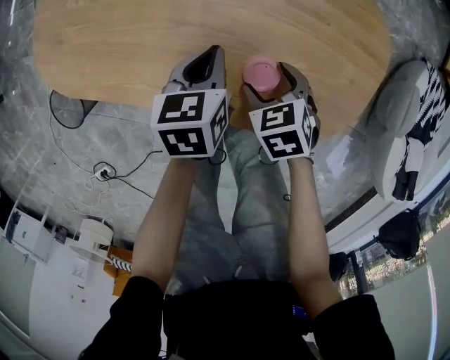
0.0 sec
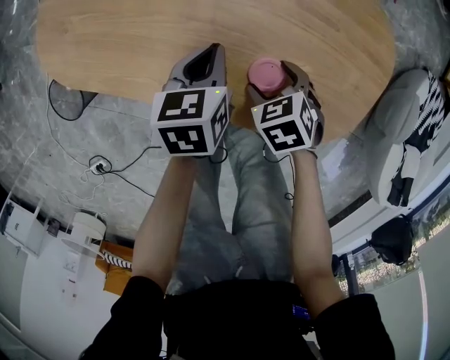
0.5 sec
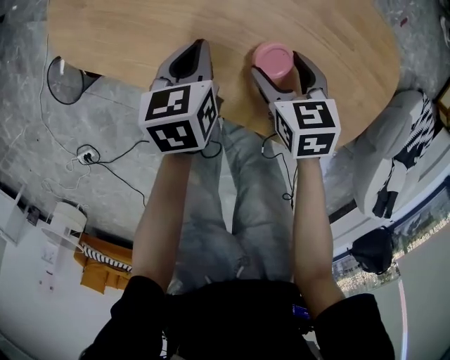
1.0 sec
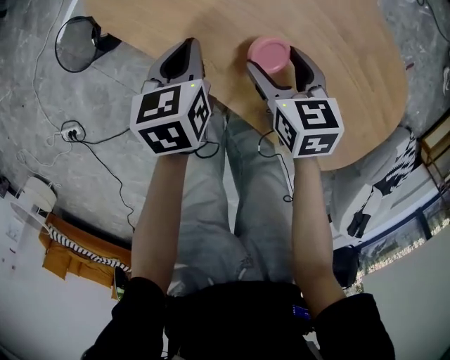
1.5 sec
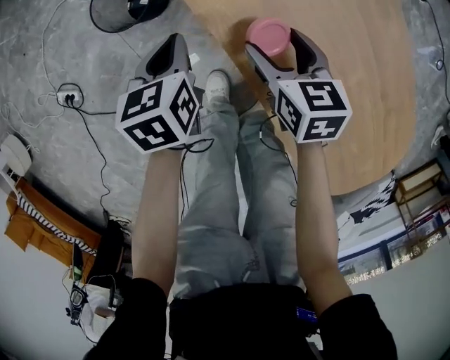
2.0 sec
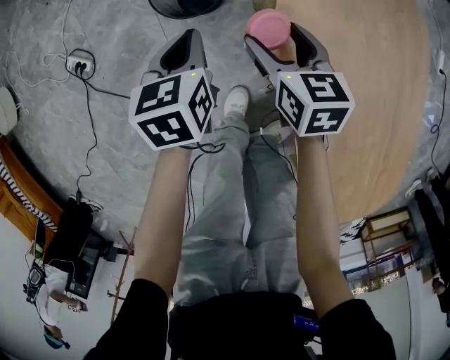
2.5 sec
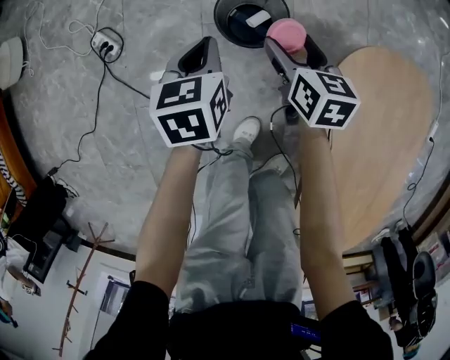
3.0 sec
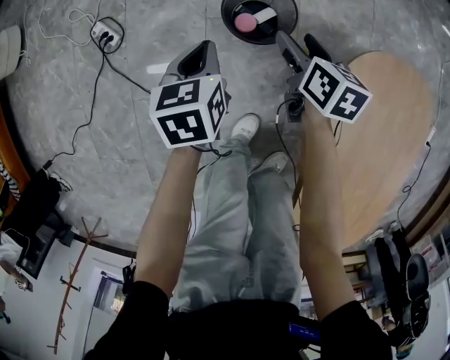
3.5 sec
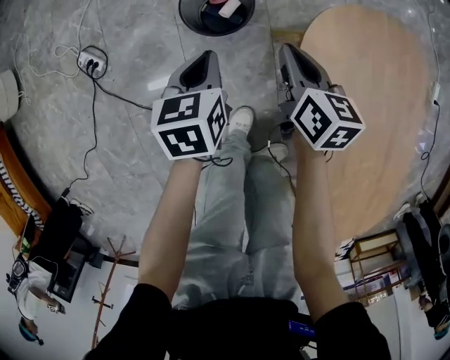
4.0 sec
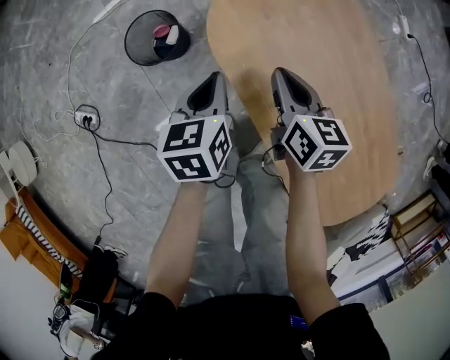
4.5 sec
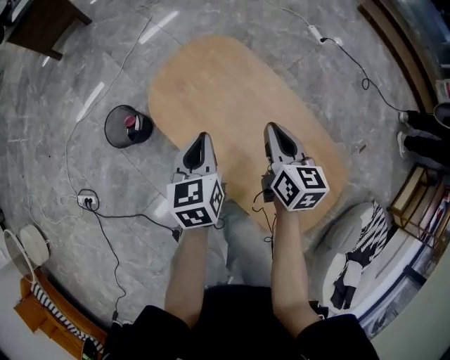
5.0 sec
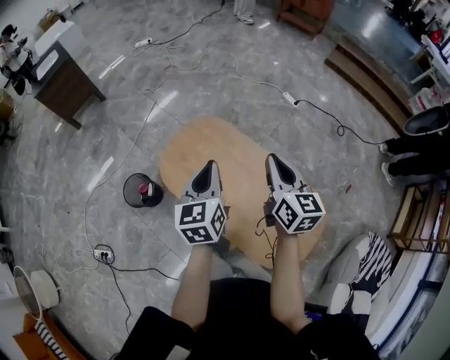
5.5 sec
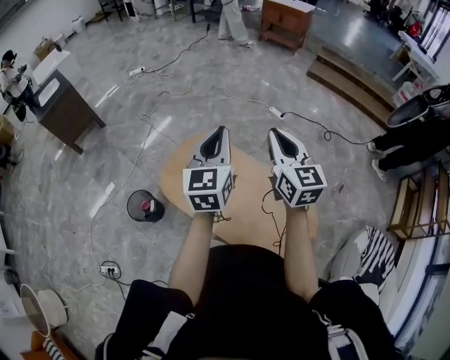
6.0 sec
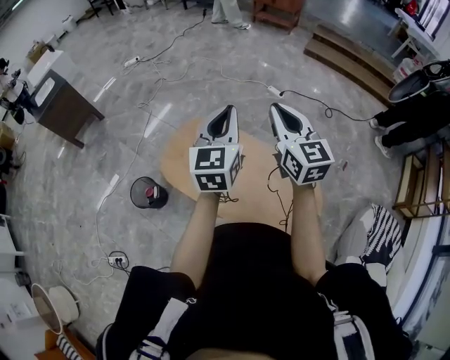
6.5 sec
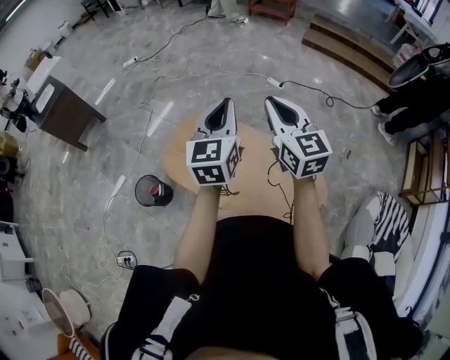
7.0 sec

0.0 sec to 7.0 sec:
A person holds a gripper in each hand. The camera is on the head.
0.0 sec to 2.0 sec: The left gripper changes place by some 40 cm, and turns by some 50 degrees. The right gripper ends up about 40 cm from where it was, and swivels approximately 30 degrees.
2.0 sec to 3.5 sec: The left gripper ends up about 30 cm from where it was, and changes its angle by roughly 30 degrees, while the right gripper ends up approximately 35 cm from where it was.
3.5 sec to 5.0 sec: The two grippers travel together, about 60 cm. The right gripper changes its angle by some 50 degrees, and closes its fingers; the left gripper swivels roughly 40 degrees.
5.0 sec to 7.0 sec: The left gripper shifts about 40 cm upward and to the right, and turns by about 40 degrees; the right gripper is displaced upward by some 35 cm, and changes its angle by some 30 degrees.

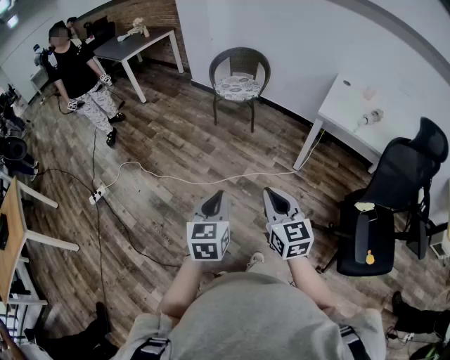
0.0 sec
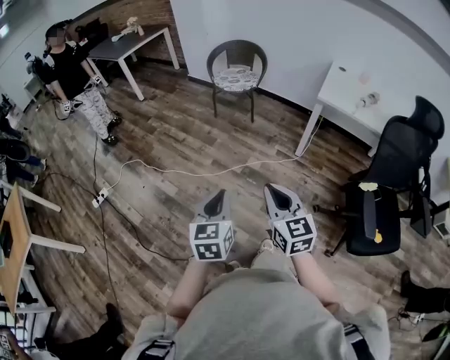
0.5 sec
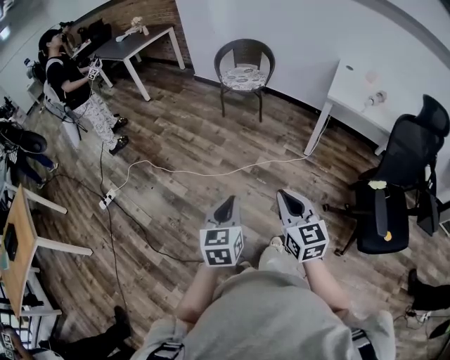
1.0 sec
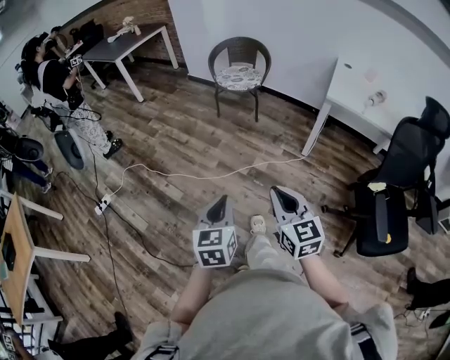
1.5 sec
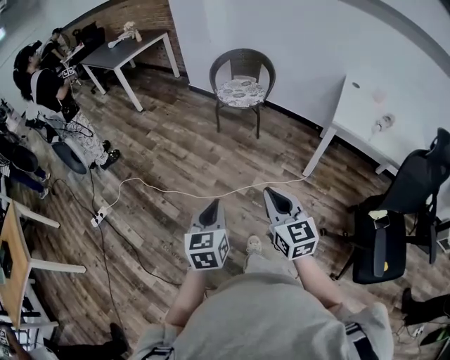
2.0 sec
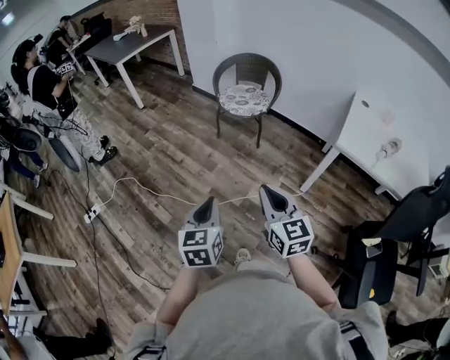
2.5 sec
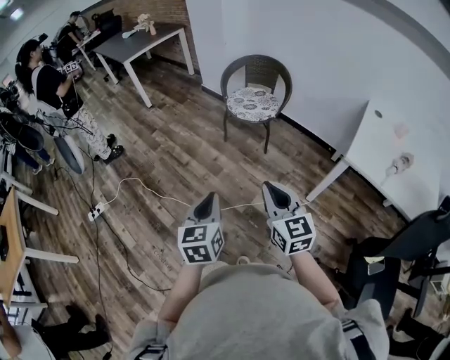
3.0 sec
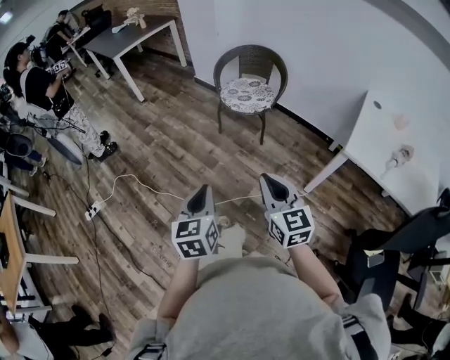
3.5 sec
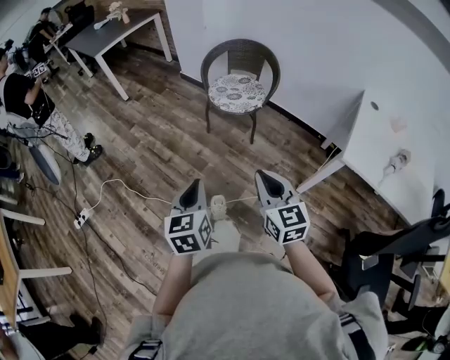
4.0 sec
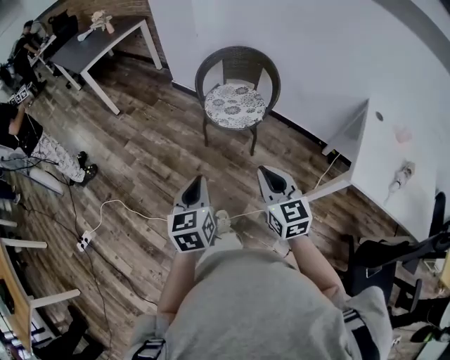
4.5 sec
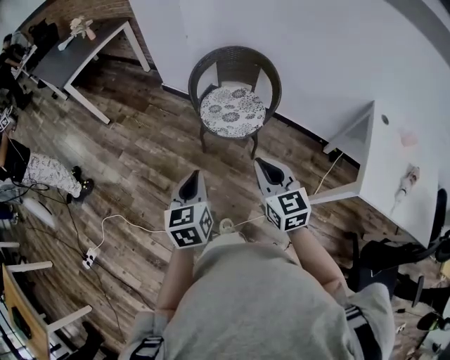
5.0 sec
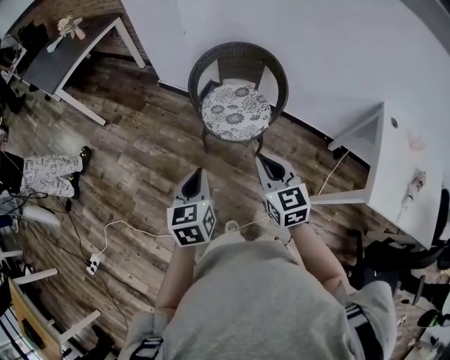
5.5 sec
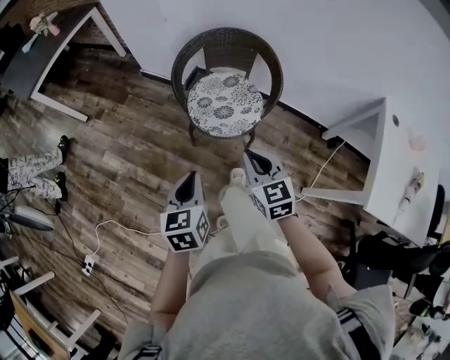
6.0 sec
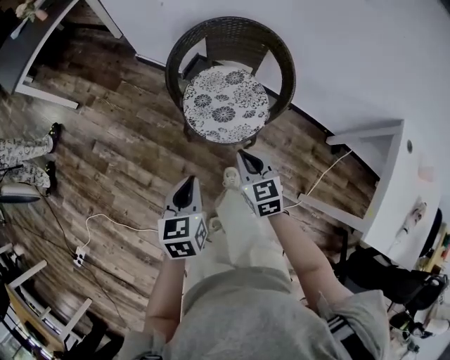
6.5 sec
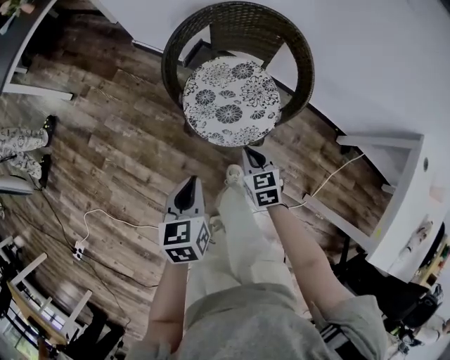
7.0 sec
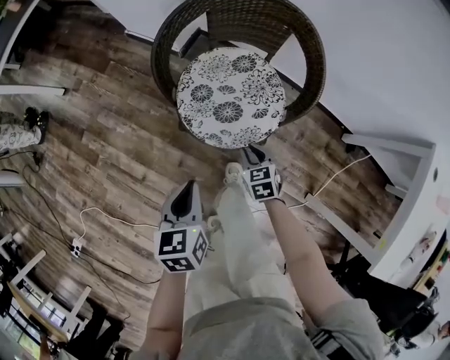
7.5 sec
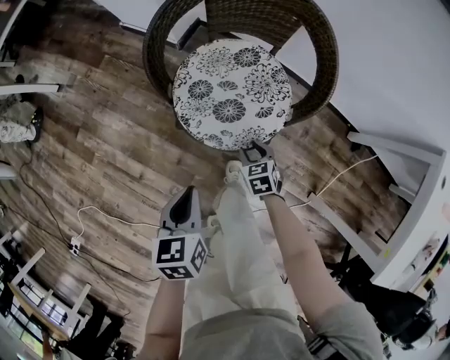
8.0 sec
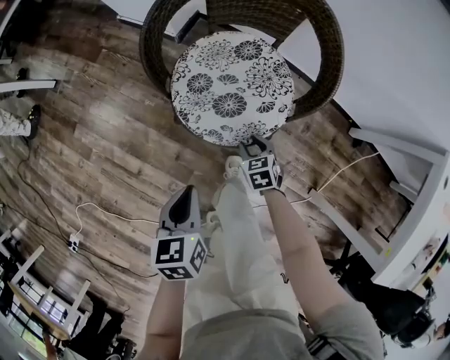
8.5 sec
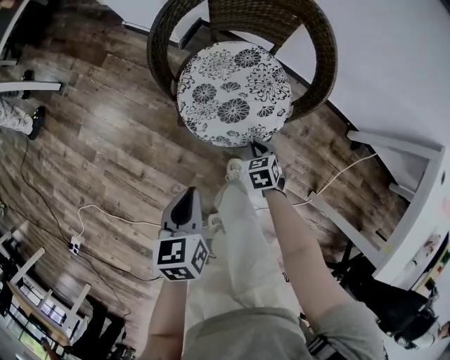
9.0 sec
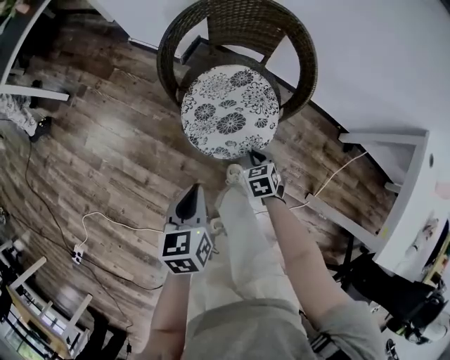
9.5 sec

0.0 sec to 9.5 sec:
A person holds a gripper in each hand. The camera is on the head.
0.0 sec to 2.0 sec: The two grippers go about 15 cm forward and to the left.
2.0 sec to 4.0 sec: The two grippers go some 30 cm forward.
4.0 sec to 5.5 sec: The grippers both shift forward by roughly 40 cm.
5.5 sec to 7.5 sec: The left gripper shifts some 35 cm downward and forward, while the right gripper moves downward and forward, some 50 cm, and points its fingers approximately 30 degrees further downward.
7.5 sec to 9.5 sec: The right gripper travels downward and back again, some 10 cm each way, and opens, then closes again. The left gripper travels downward and back again, about 5 cm each way.

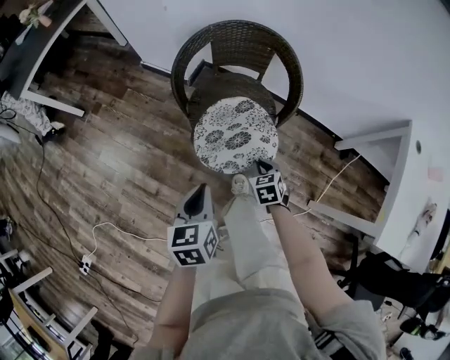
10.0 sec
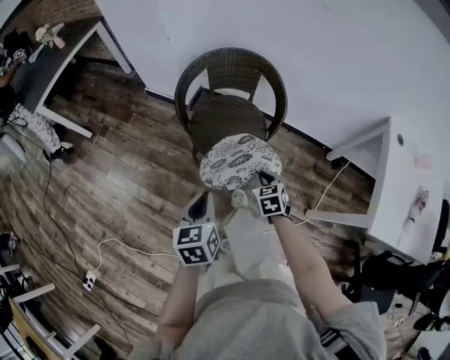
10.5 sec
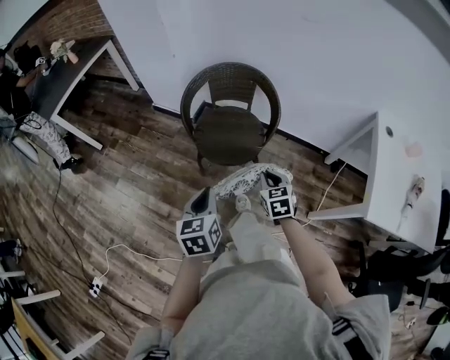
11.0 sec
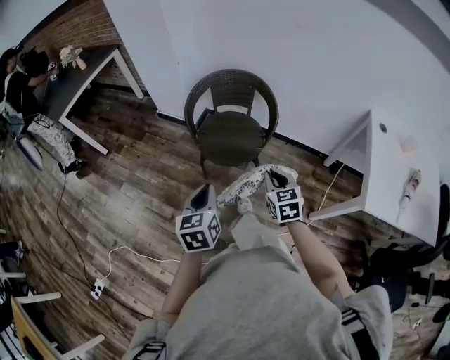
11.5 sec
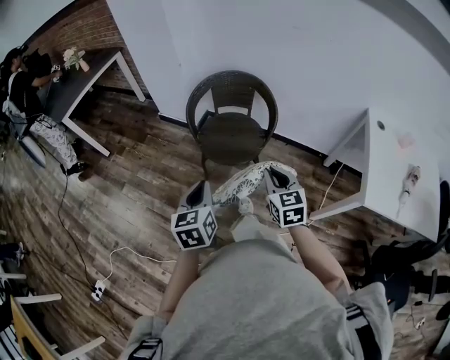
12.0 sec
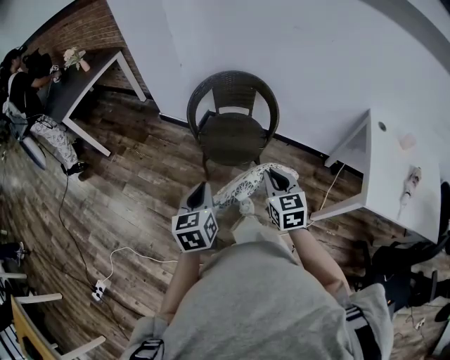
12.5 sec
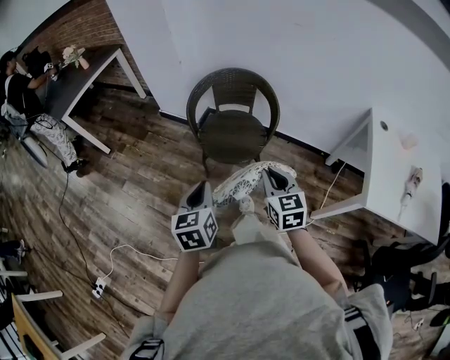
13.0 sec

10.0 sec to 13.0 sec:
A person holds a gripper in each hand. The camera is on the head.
10.0 sec to 11.5 sec: The right gripper goes roughly 30 cm upward and backward, and turns by approximately 20 degrees. Meanwhile the left gripper goes about 20 cm upward and backward.
11.5 sec to 13.0 sec: The right gripper moves upward, about 5 cm.

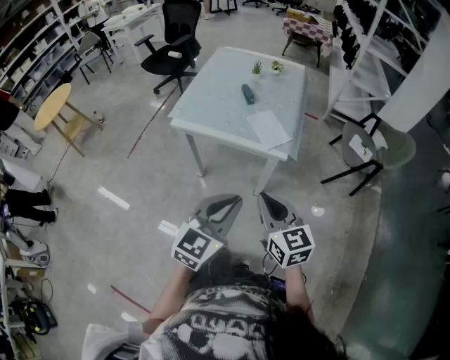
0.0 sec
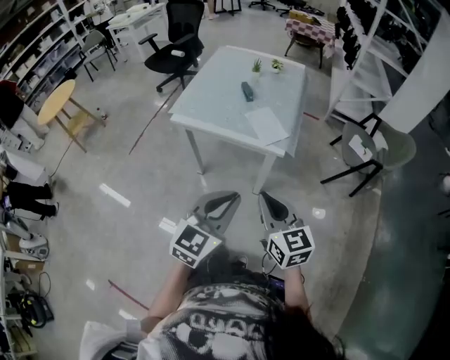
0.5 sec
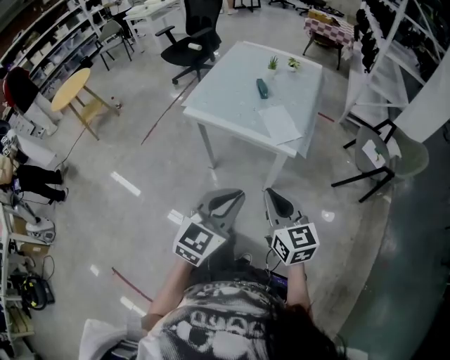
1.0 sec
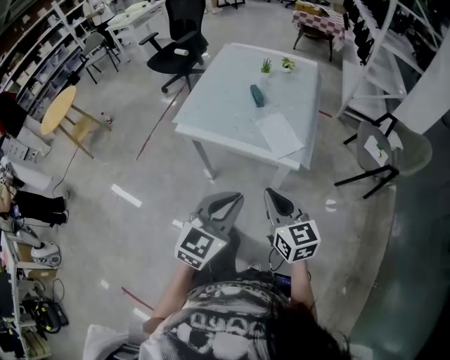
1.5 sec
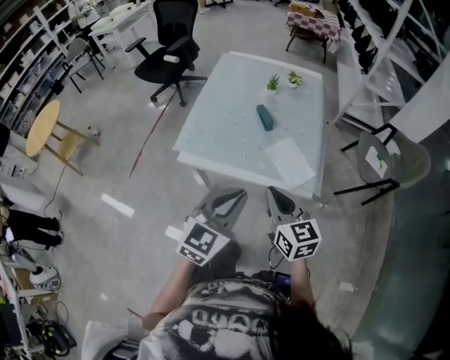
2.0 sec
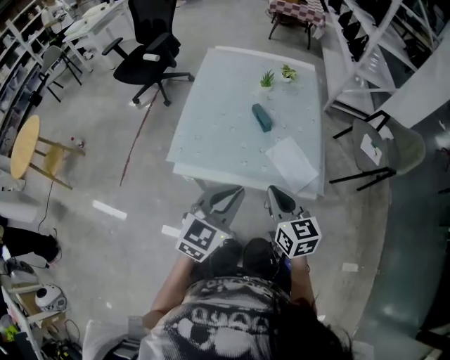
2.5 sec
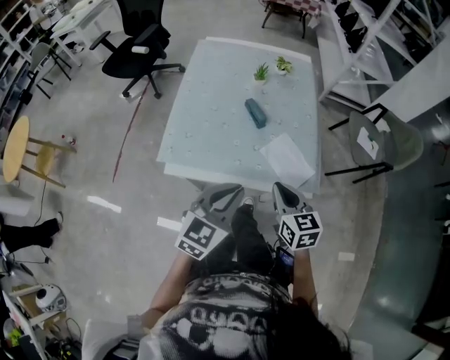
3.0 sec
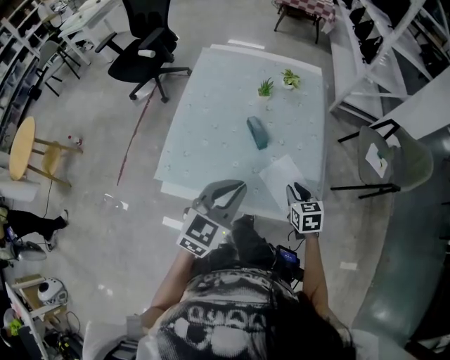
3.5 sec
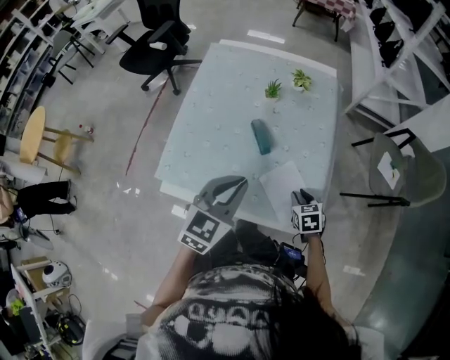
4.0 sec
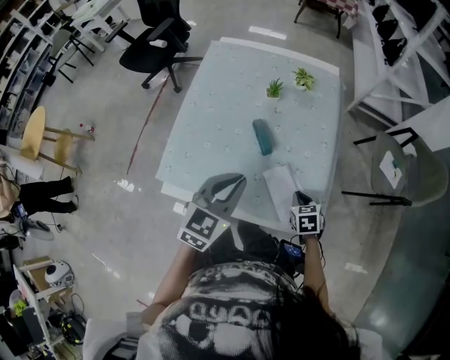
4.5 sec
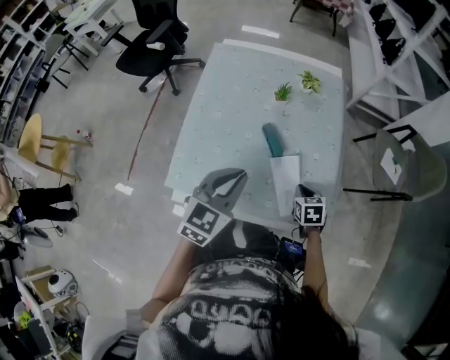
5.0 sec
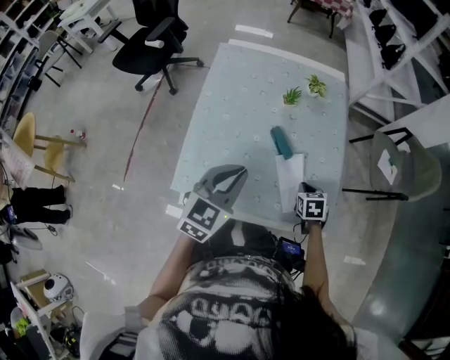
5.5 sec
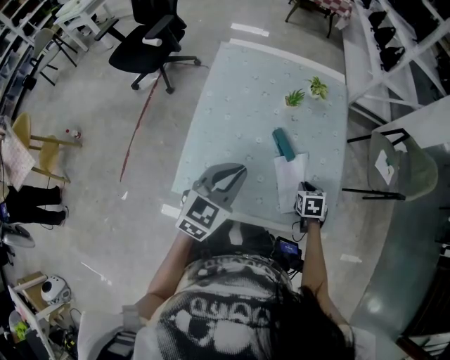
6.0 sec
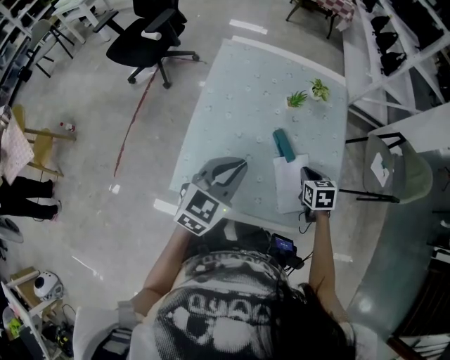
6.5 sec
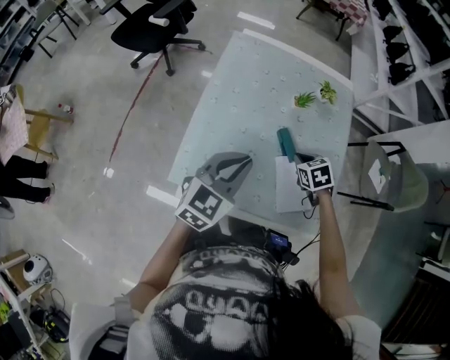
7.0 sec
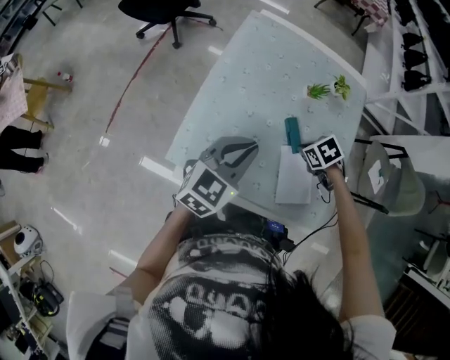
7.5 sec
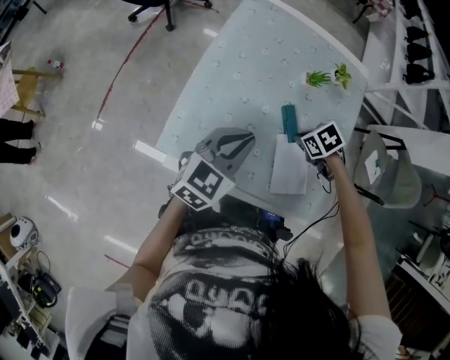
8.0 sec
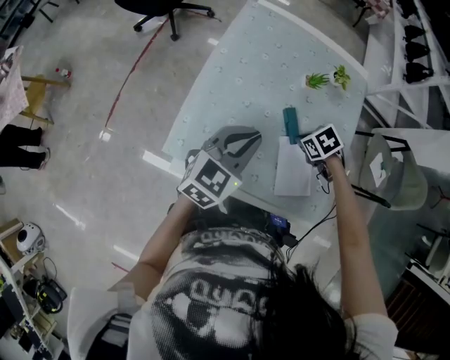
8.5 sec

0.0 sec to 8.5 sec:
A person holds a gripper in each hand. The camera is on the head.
0.0 sec to 2.0 sec: The left gripper goes approximately 25 cm forward and to the left, while the right gripper shifts roughly 25 cm forward.
2.0 sec to 4.0 sec: The right gripper shifts about 40 cm downward, forward and to the right, tilts its fingers some 40 degrees downward, and opens. The left gripper is displaced forward by approximately 25 cm.
4.0 sec to 6.5 sec: The right gripper heads to the left, forward and upward, covering roughly 15 cm, and closes its fingers. The left gripper goes roughly 15 cm to the left.
6.5 sec to 8.5 sec: The right gripper changes place by about 10 cm, and turns by roughly 50 degrees.
